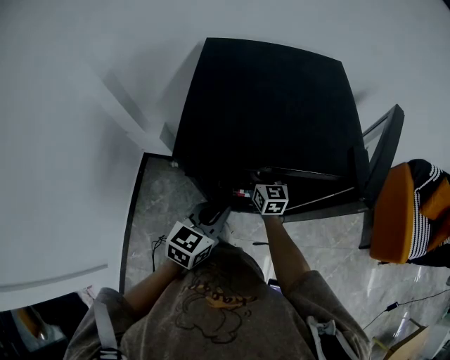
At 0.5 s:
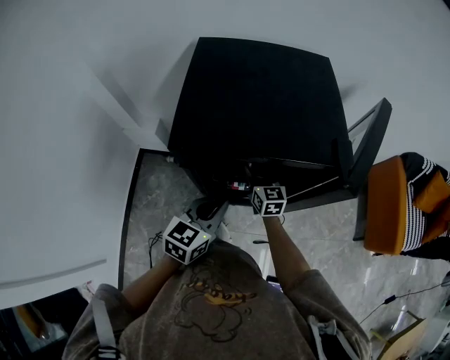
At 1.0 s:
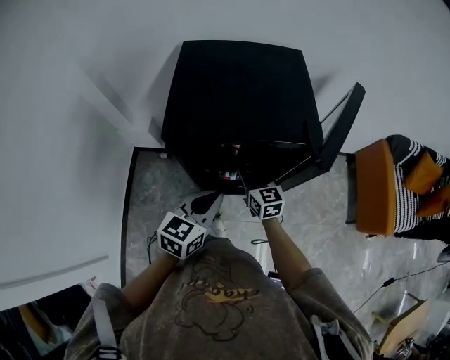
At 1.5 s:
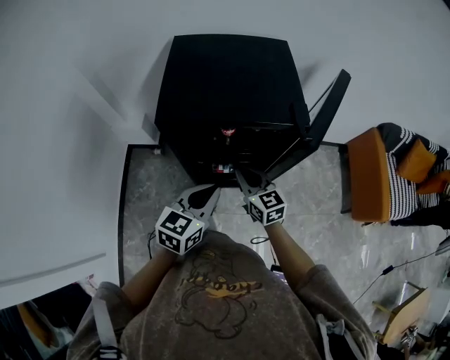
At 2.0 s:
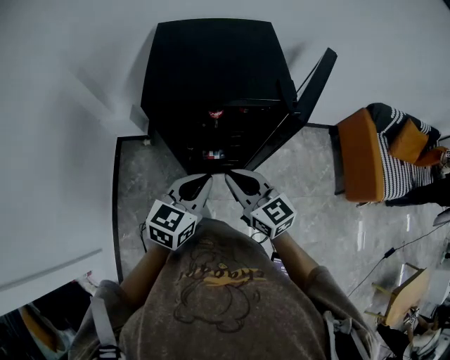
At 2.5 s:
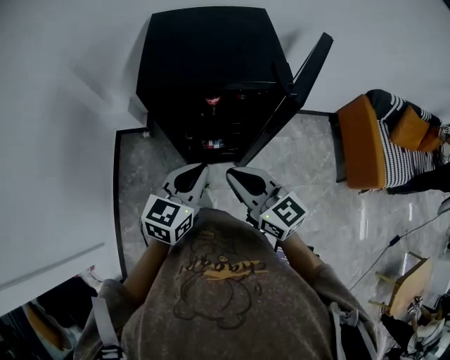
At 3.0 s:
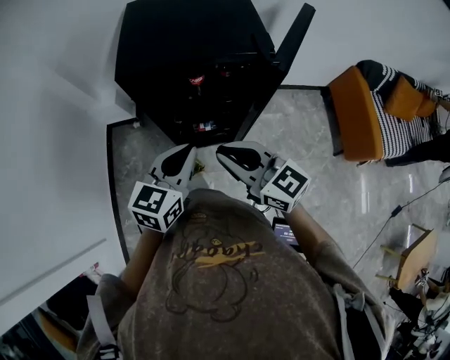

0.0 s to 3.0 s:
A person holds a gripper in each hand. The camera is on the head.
0.0 to 1.5 s: The left gripper goes approximately 15 cm upward, backward and to the right; the right gripper goes roughly 20 cm backward and upward, and closes.
1.5 to 3.0 s: The right gripper heads backward and upward, covering approximately 20 cm; the left gripper moves roughly 5 cm.

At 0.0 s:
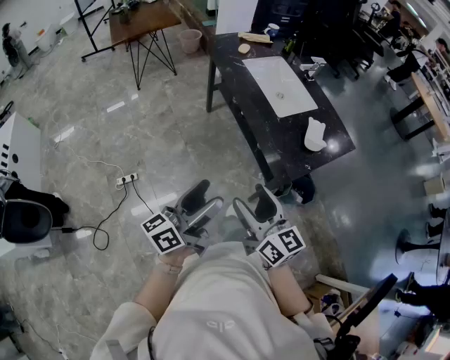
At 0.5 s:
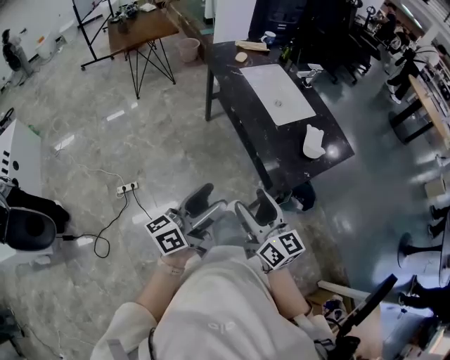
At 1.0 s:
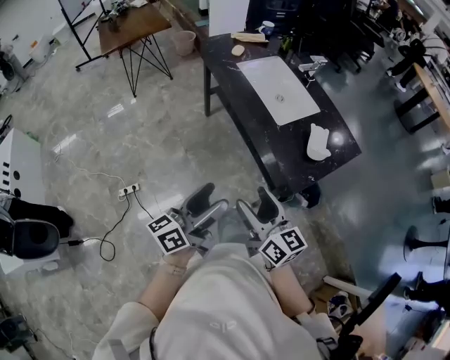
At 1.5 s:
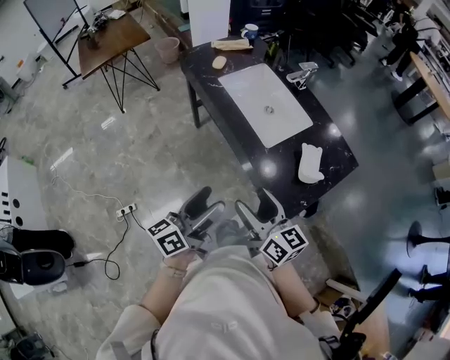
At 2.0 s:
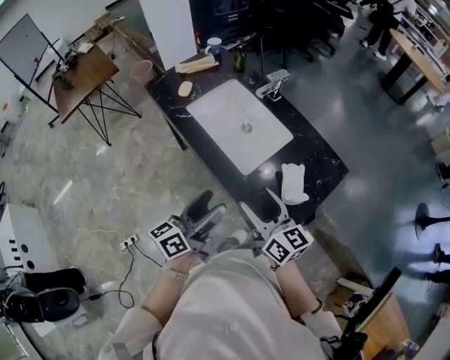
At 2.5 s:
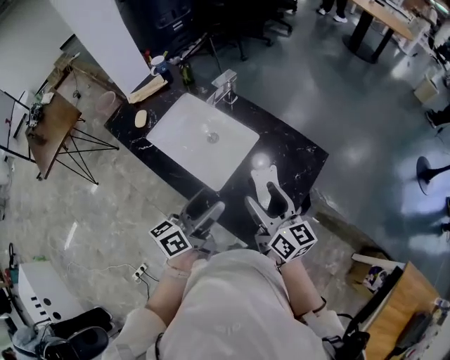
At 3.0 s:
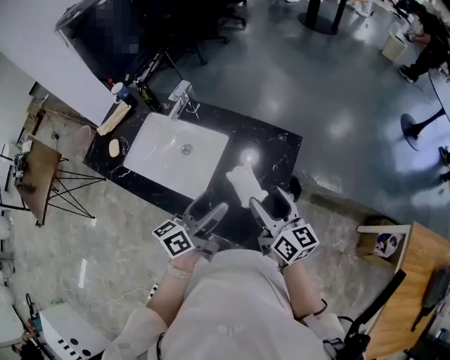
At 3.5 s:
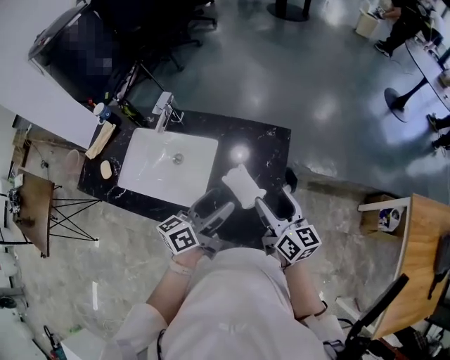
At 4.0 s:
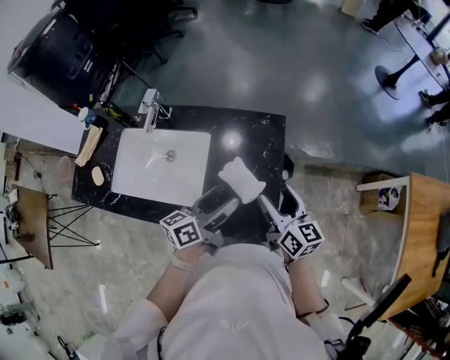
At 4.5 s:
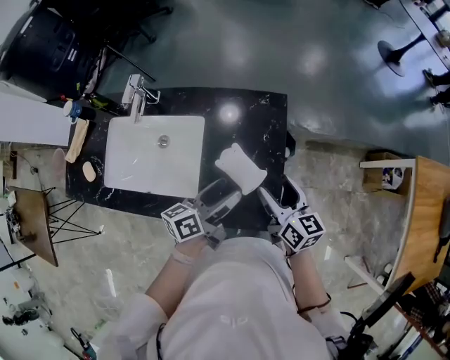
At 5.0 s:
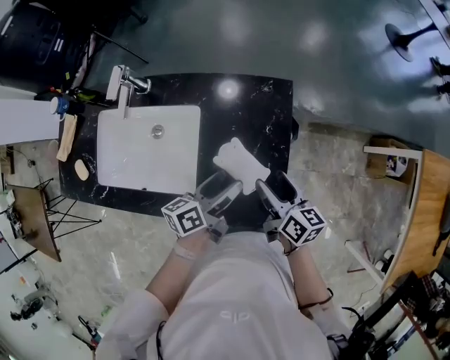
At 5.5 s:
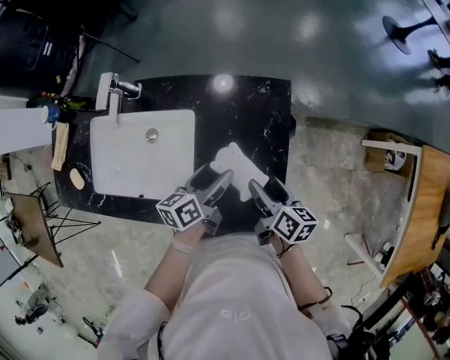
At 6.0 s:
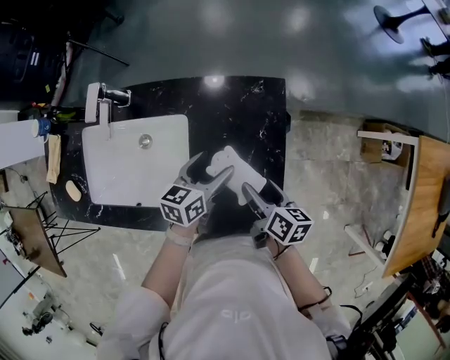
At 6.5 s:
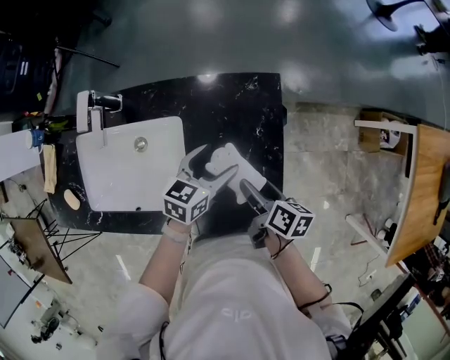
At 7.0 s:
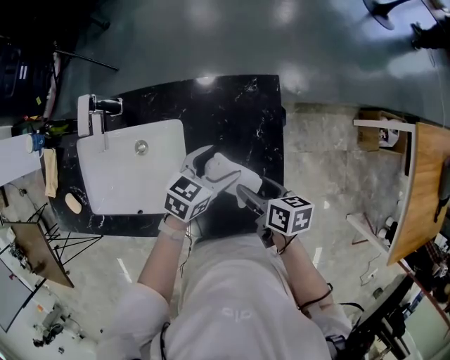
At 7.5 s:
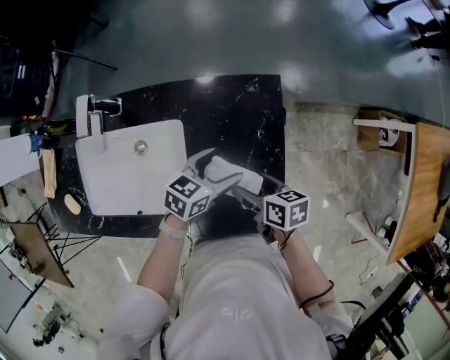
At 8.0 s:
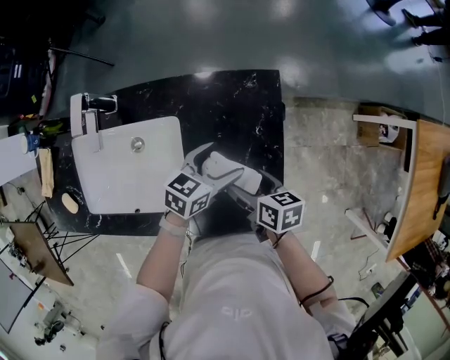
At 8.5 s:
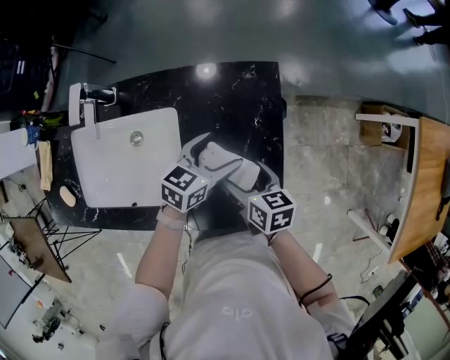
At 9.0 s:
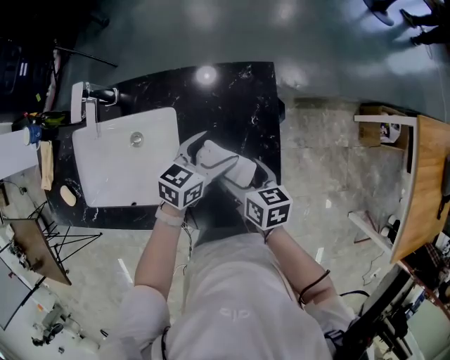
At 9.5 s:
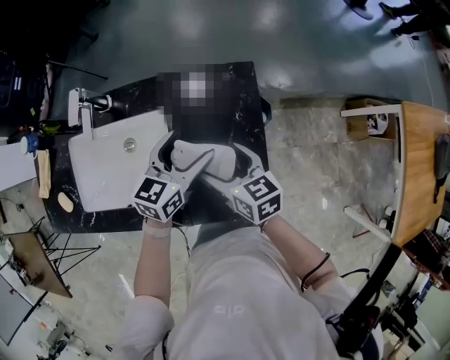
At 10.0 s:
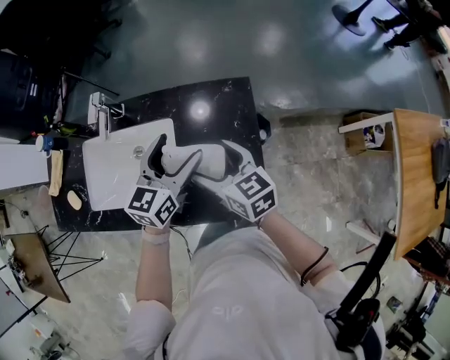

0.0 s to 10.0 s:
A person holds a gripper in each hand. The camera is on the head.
0.0 to 2.0 s: Both grippers travel together forward, roughly 35 cm.
2.0 to 4.0 s: The left gripper changes place by approximately 25 cm, and changes its angle by about 50 degrees; the right gripper moves about 25 cm, and changes its angle by roughly 50 degrees.
4.0 to 6.0 s: The left gripper heads downward and forward, covering roughly 20 cm, and changes its angle by some 30 degrees; the right gripper heads downward, covering approximately 15 cm, and swivels some 40 degrees.
6.0 to 8.0 s: The left gripper turns by some 20 degrees.
8.0 to 10.0 s: The two grippers go about 15 cm upward. The right gripper rotates some 40 degrees; the left gripper turns by approximately 30 degrees.

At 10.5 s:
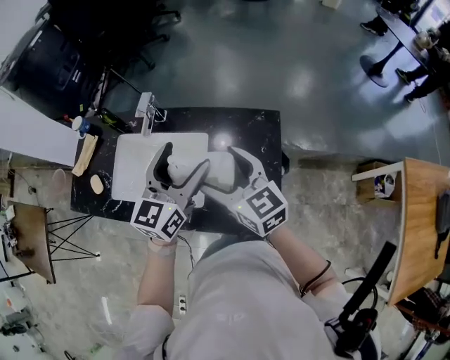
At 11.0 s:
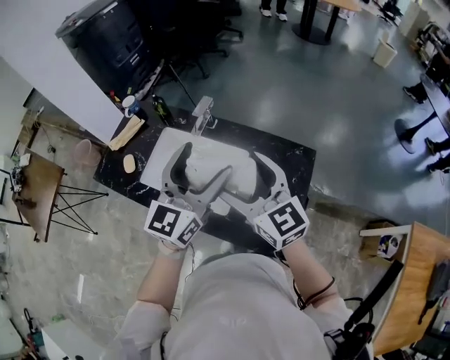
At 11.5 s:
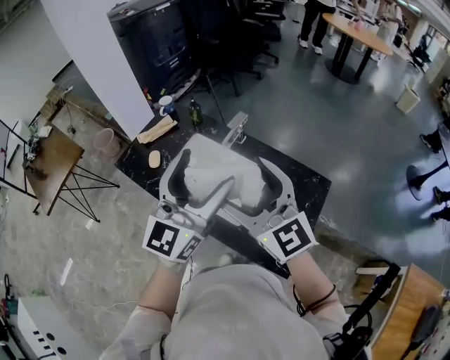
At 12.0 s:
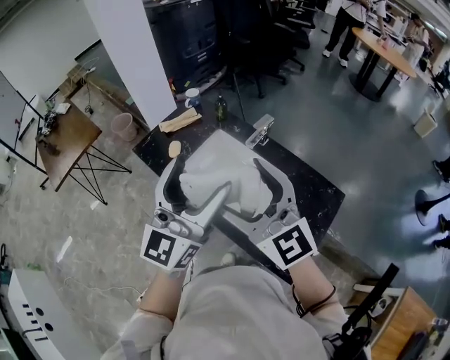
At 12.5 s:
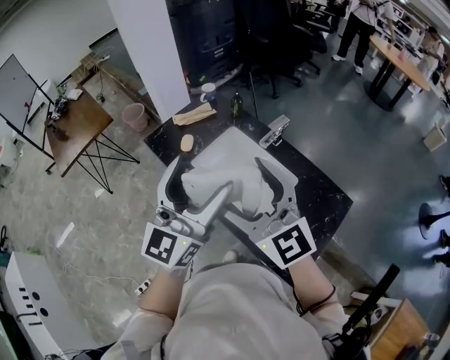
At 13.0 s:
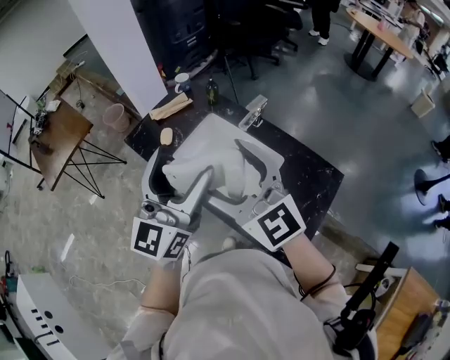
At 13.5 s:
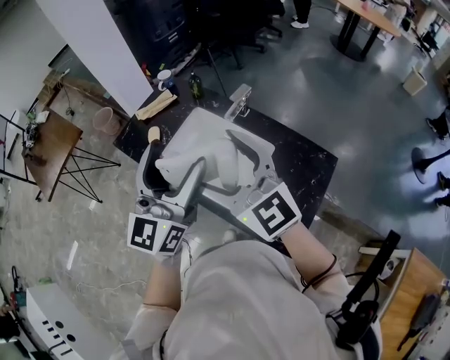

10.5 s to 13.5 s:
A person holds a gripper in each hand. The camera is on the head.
10.5 to 12.0 s: The right gripper changes place by some 30 cm, and rotates approximately 40 degrees. Meanwhile the left gripper ends up approximately 30 cm from where it was, and swivels roughly 40 degrees.
12.0 to 13.5 s: The grippers stay close to where they were, moving slightly.

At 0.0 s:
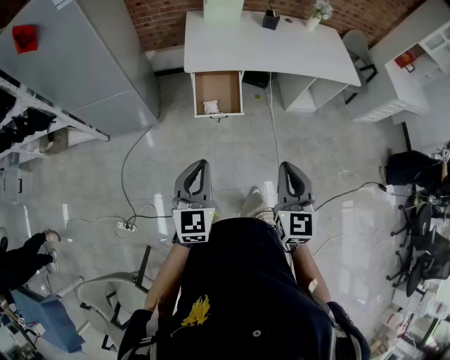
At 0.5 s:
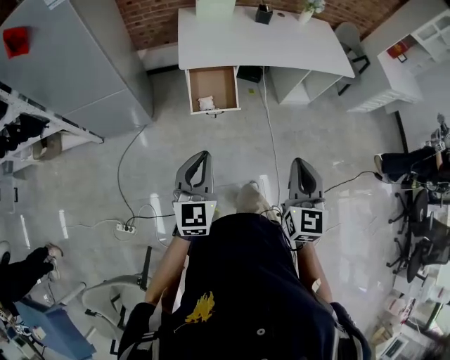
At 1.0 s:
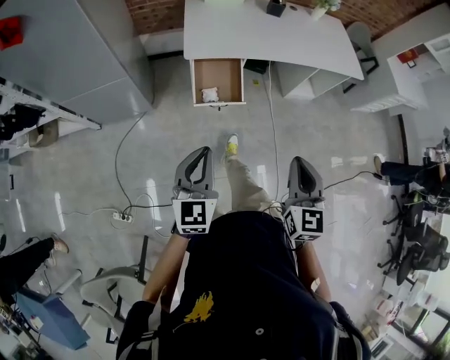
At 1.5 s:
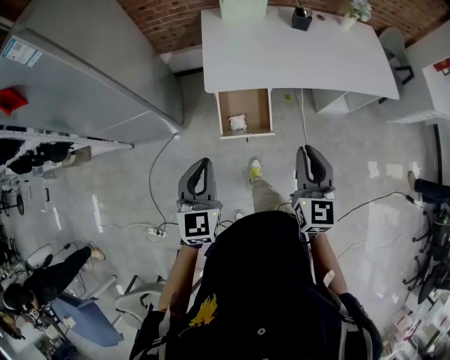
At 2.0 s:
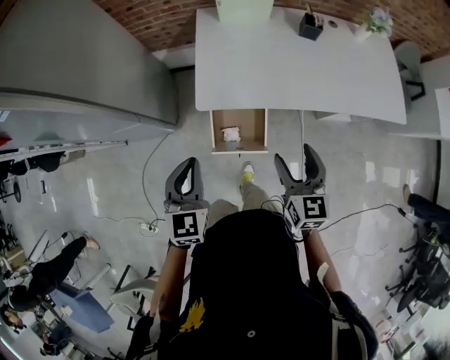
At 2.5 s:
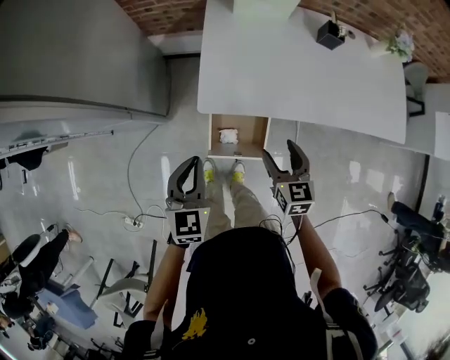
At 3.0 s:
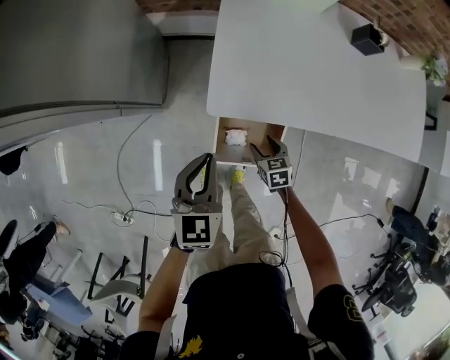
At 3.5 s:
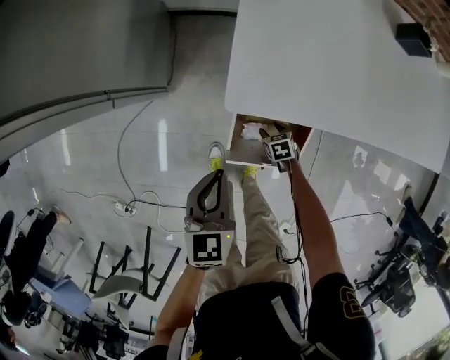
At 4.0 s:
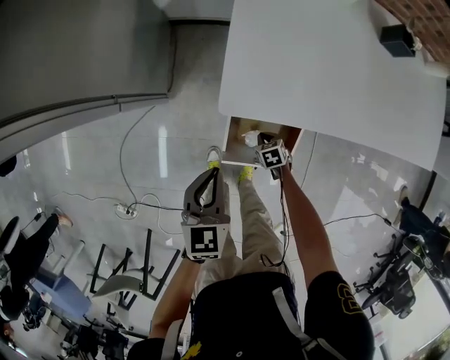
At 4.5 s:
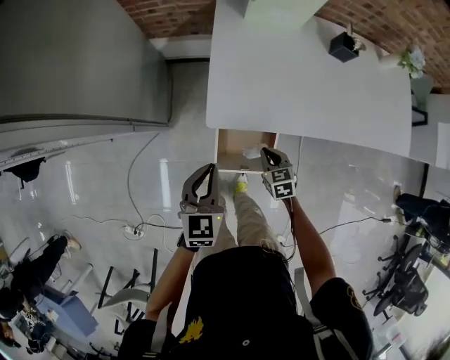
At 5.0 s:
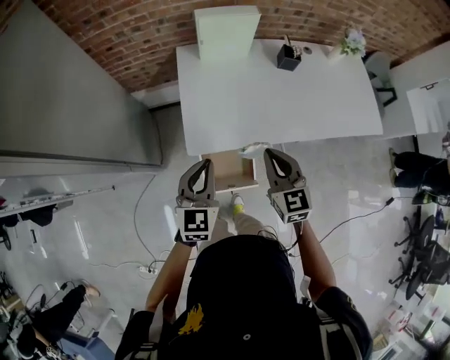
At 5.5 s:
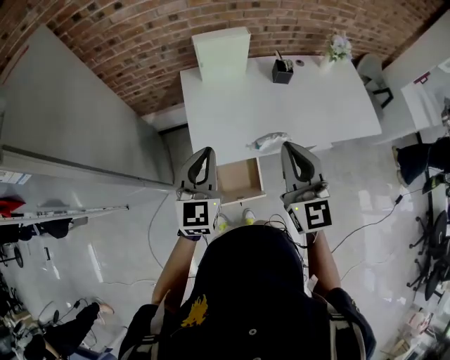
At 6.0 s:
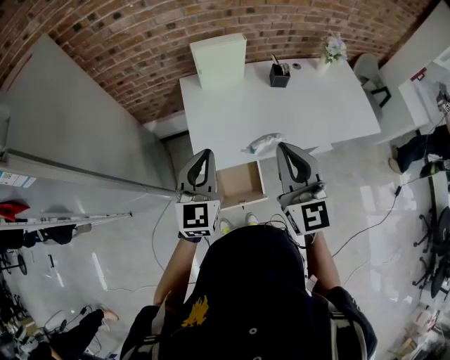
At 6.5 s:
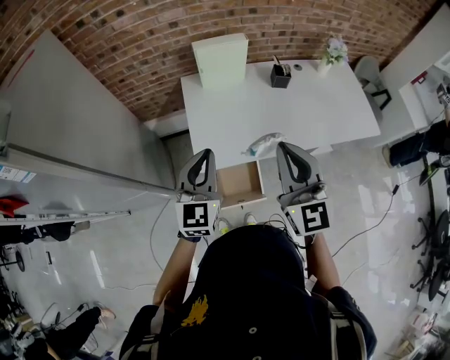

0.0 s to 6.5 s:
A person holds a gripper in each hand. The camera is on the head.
0.0 to 2.0 s: Both grippers move forward, some 40 cm. The right gripper opens up.
2.0 to 4.5 s: The left gripper moves downward and forward, roughly 20 cm. The right gripper is displaced downward and forward by approximately 35 cm, rotates about 30 degrees, and closes its fingers.
4.5 to 6.5 s: The right gripper is displaced upward by about 50 cm, and tilts its fingers about 50 degrees upward. Meanwhile the left gripper is displaced upward by roughly 25 cm, and rotates roughly 30 degrees.

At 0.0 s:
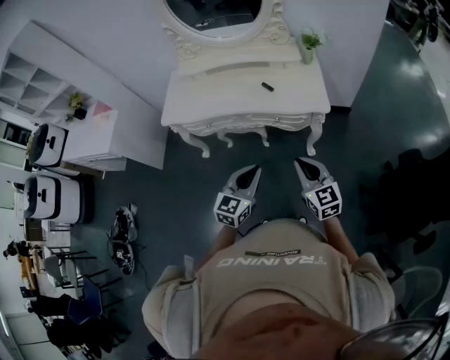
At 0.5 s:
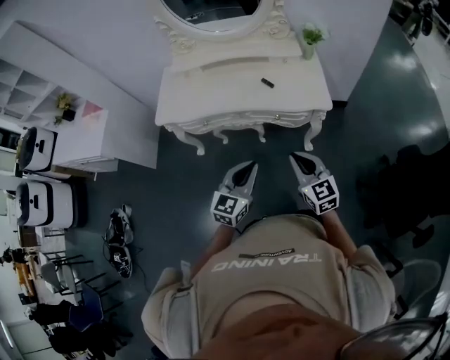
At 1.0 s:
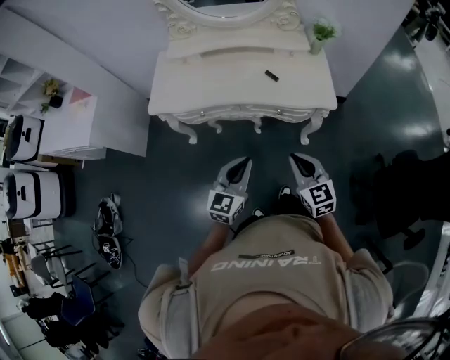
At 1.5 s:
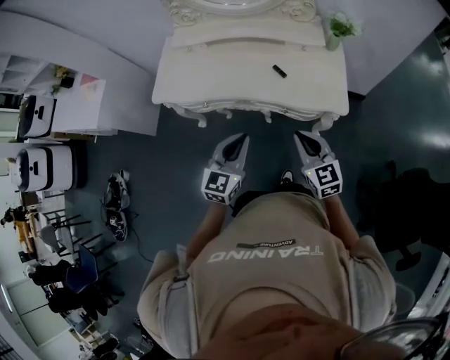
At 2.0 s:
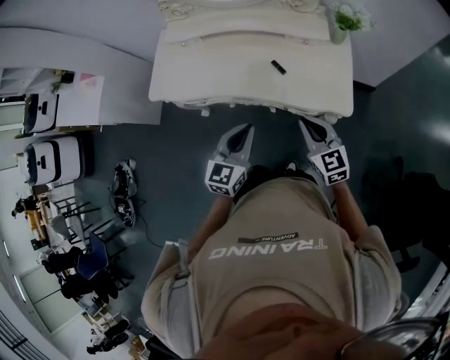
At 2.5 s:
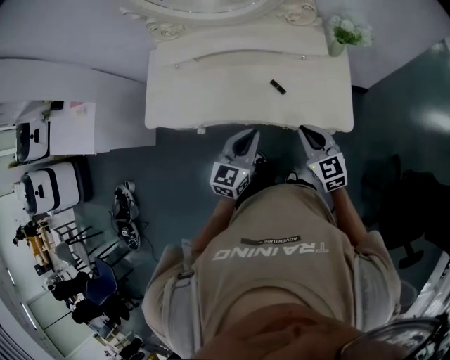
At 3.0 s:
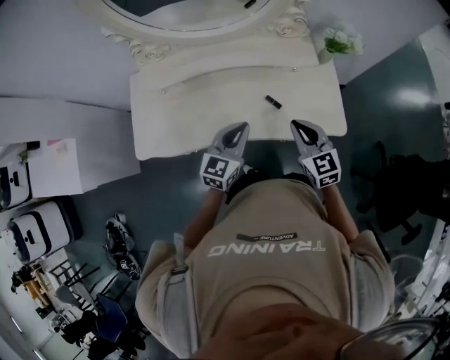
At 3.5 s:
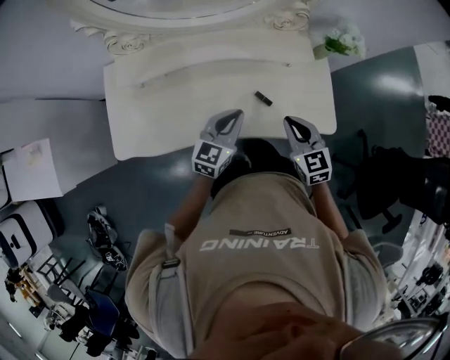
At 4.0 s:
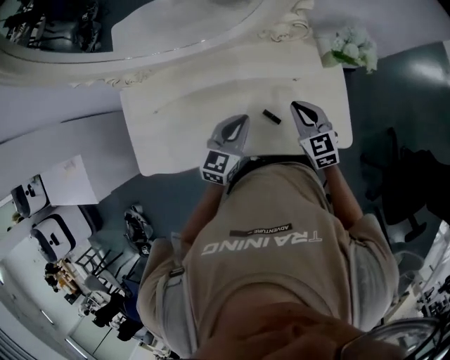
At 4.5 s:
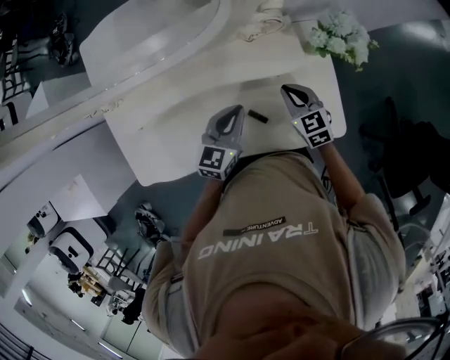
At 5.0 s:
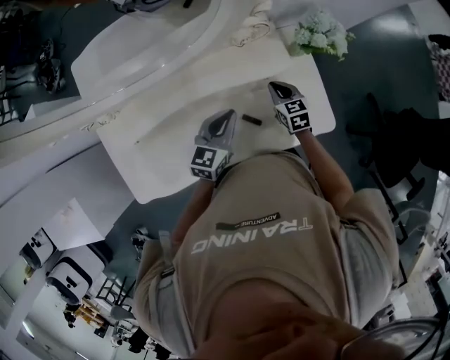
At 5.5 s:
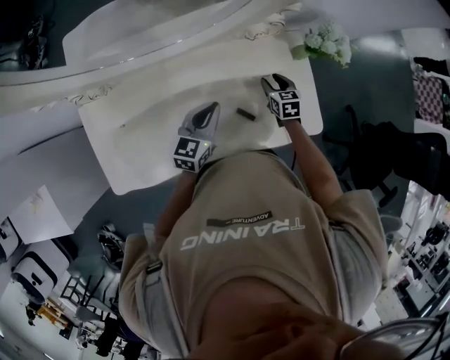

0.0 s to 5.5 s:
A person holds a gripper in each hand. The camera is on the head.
0.0 to 2.0 s: The grippers both shift forward by about 25 cm.
2.0 to 3.5 s: The right gripper heads forward and to the left, covering roughly 20 cm, and rotates about 20 degrees; the left gripper travels forward by some 25 cm, and turns by roughly 20 degrees.
3.5 to 5.5 s: The left gripper goes about 15 cm forward; the right gripper goes roughly 30 cm forward and downward, rotates roughly 30 degrees, and opens its fingers.
